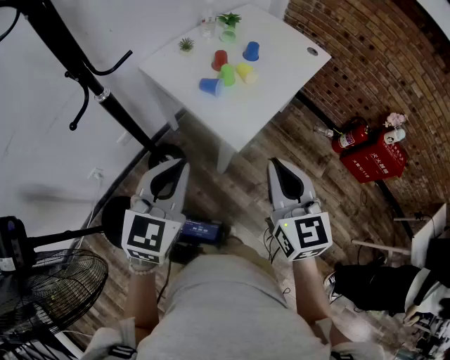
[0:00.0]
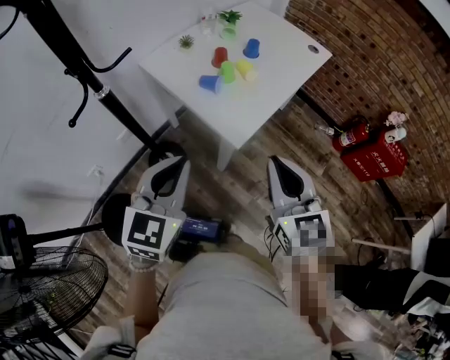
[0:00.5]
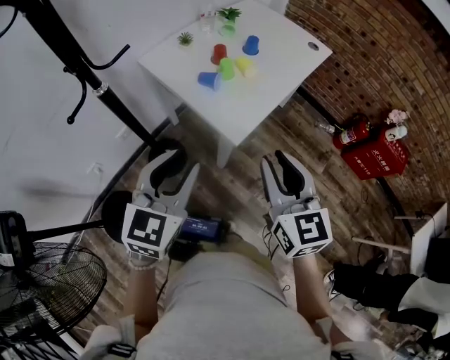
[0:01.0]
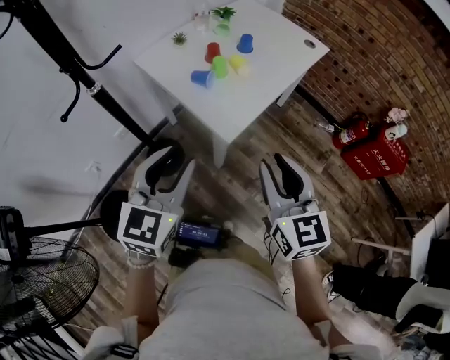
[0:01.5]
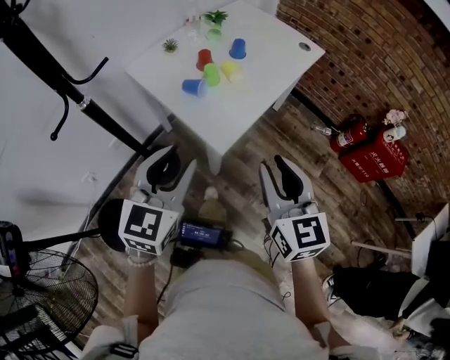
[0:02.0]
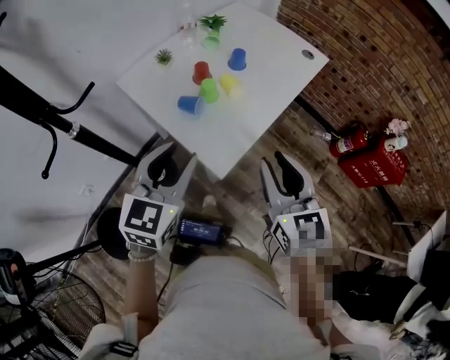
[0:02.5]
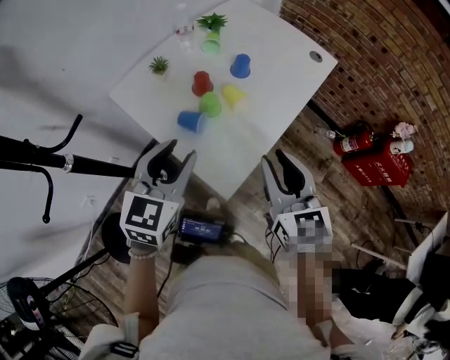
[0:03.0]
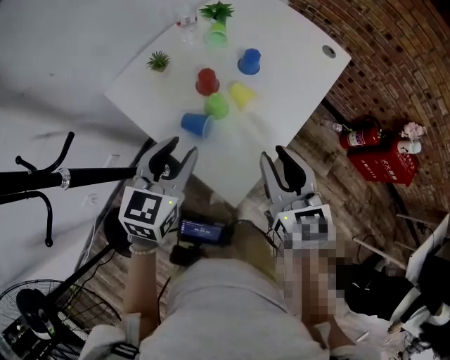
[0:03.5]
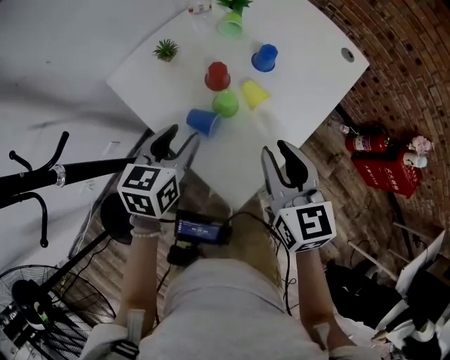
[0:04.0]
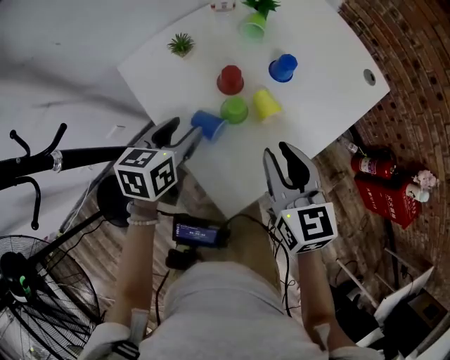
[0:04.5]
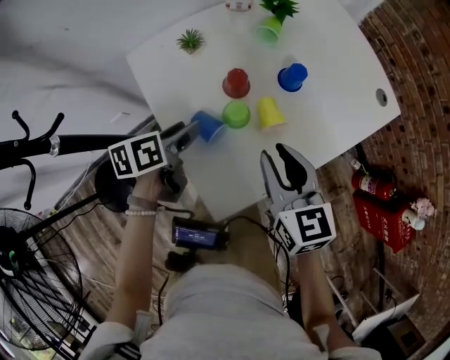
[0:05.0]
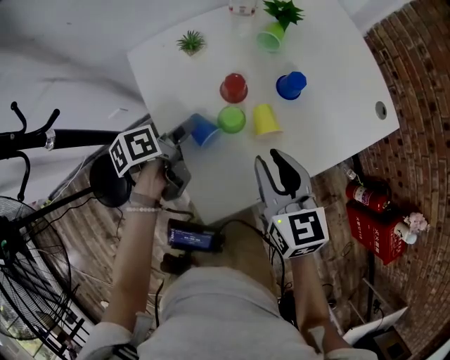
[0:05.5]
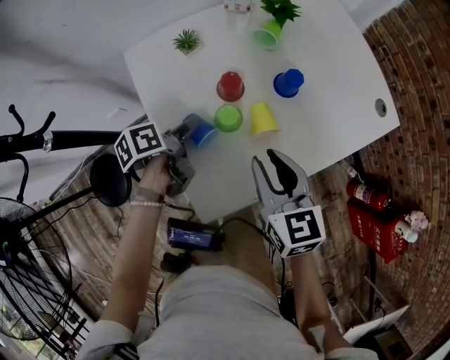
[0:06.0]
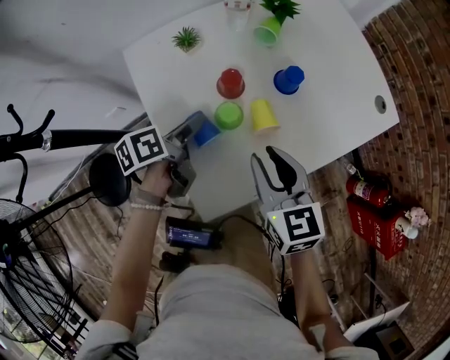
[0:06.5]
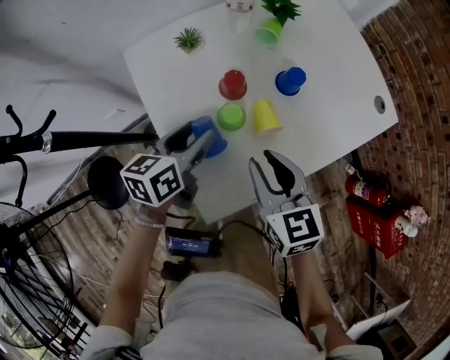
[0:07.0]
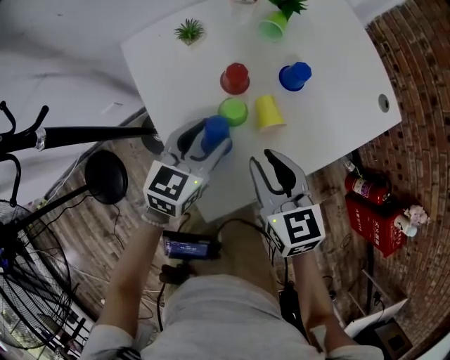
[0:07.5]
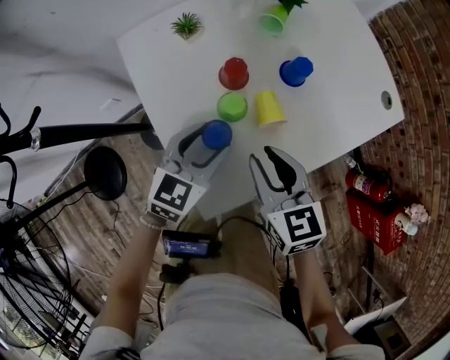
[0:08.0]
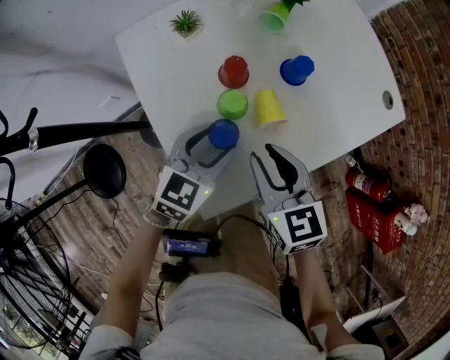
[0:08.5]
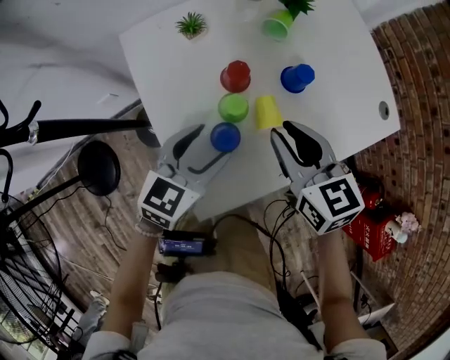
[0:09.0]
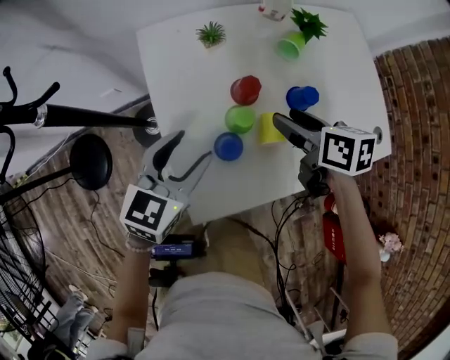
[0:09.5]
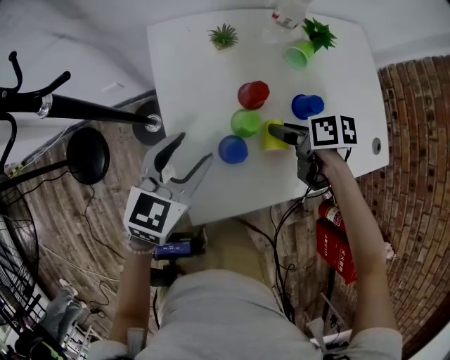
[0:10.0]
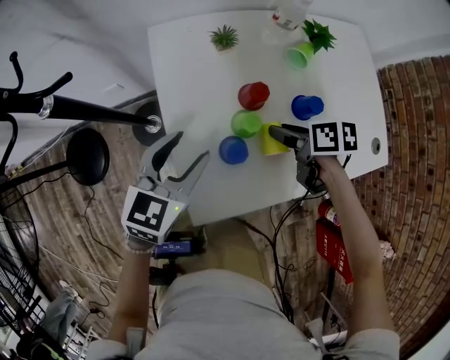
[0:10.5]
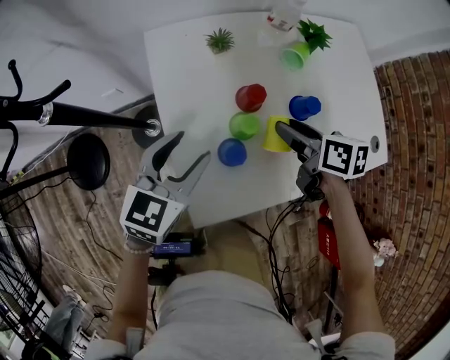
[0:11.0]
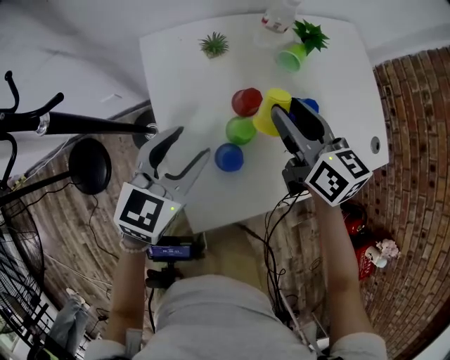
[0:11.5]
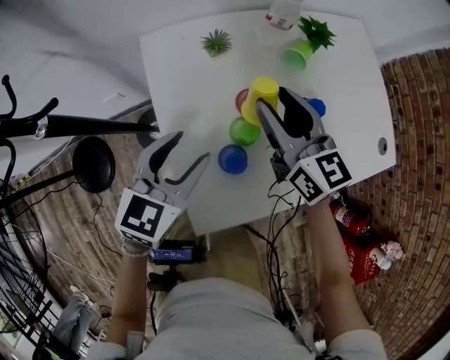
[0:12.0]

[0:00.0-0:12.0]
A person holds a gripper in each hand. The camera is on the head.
0:00.0 to 0:02.0: The two grippers go roughly 5 cm to the right. The right gripper opens its fingers. The left gripper opens.
0:02.0 to 0:04.0: The right gripper shifts approximately 25 cm forward. The left gripper shifts about 30 cm forward and downward, and changes its angle by roughly 30 degrees.
0:04.0 to 0:06.0: The right gripper is displaced forward and downward by roughly 10 cm, and turns by roughly 20 degrees, while the left gripper shifts approximately 10 cm downward, and rotates around the line of its fingers by approximately 70 degrees, counterclockwise from behind.
0:06.0 to 0:08.0: The left gripper heads to the right, covering about 10 cm, and rolls clockwise, seen from behind, by some 70 degrees.
0:08.0 to 0:10.0: The left gripper changes place by some 10 cm, while the right gripper shifts by roughly 15 cm, turns by some 50 degrees, and opens its fingers.
0:10.0 to 0:12.0: The right gripper travels upward and forward by about 15 cm, and tips its fingers upward by roughly 40 degrees.

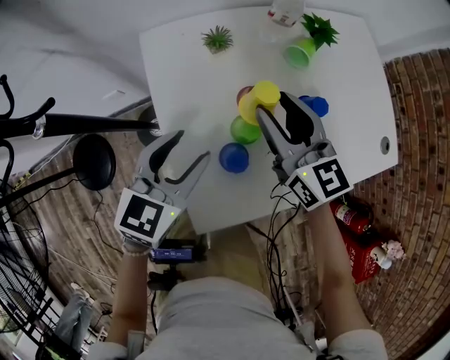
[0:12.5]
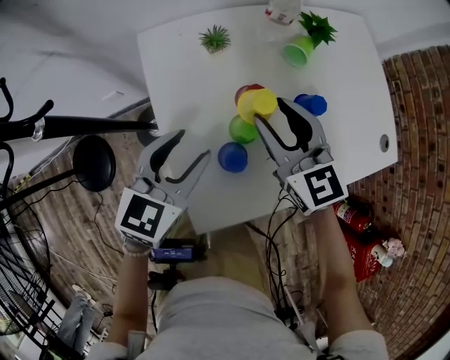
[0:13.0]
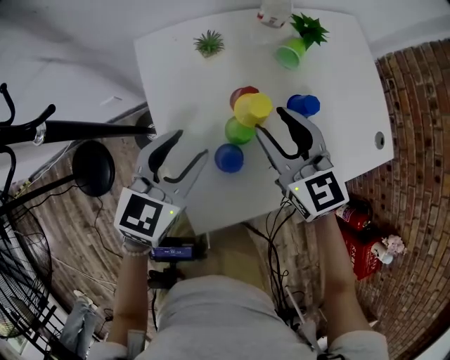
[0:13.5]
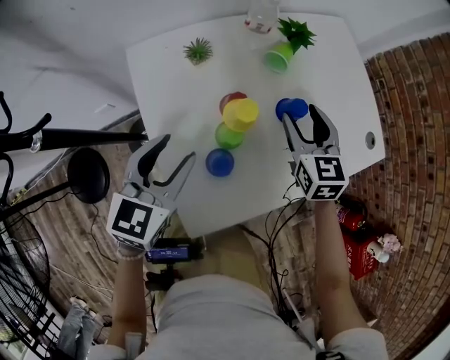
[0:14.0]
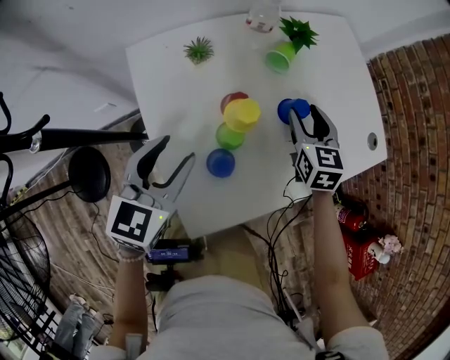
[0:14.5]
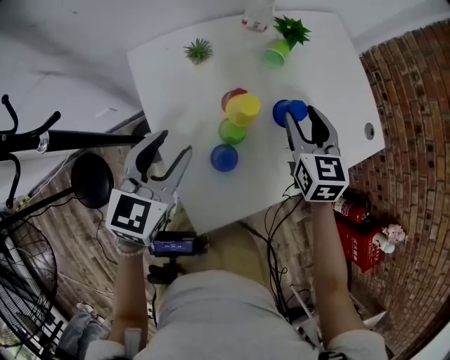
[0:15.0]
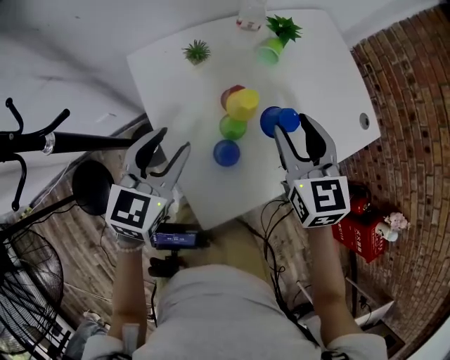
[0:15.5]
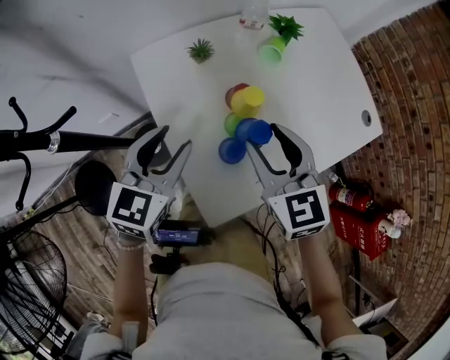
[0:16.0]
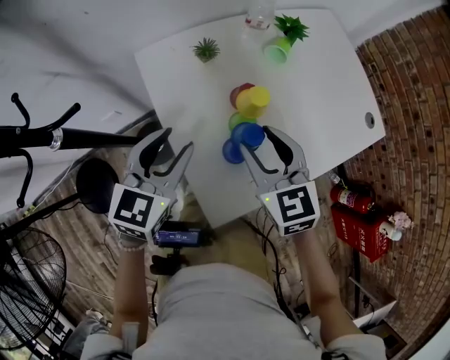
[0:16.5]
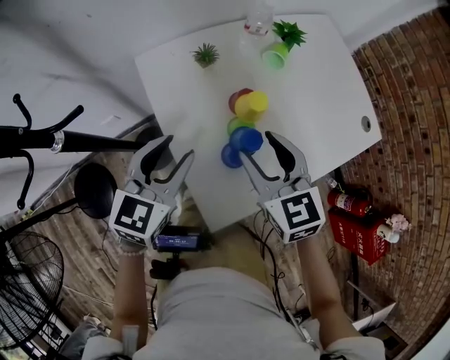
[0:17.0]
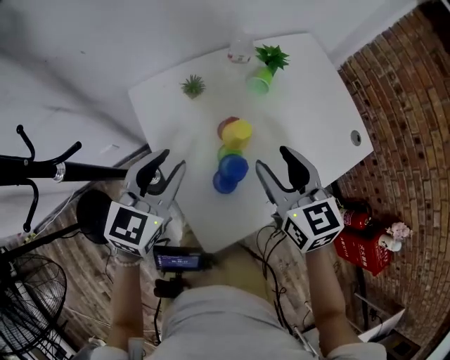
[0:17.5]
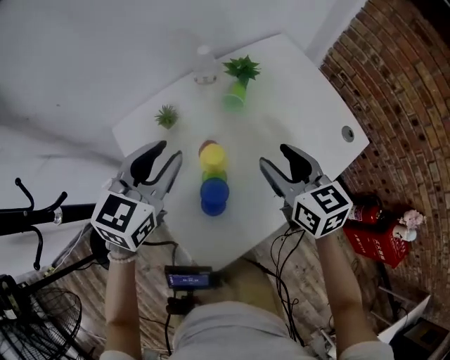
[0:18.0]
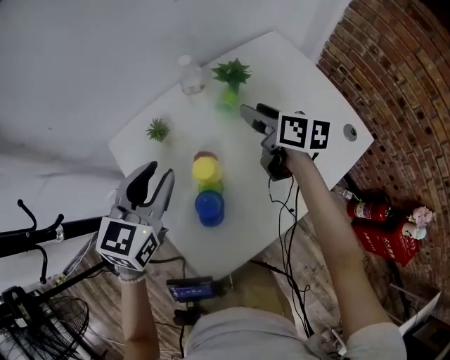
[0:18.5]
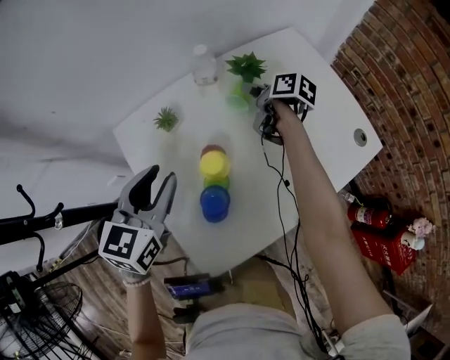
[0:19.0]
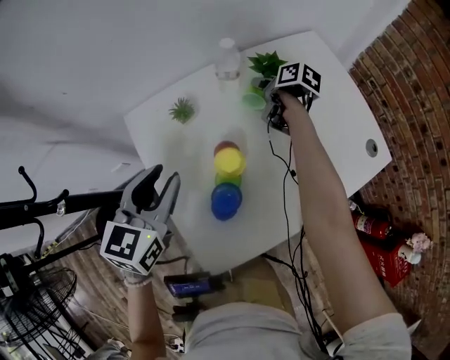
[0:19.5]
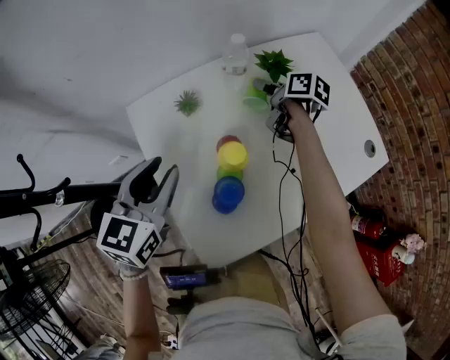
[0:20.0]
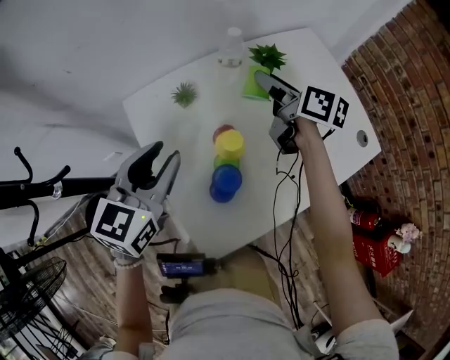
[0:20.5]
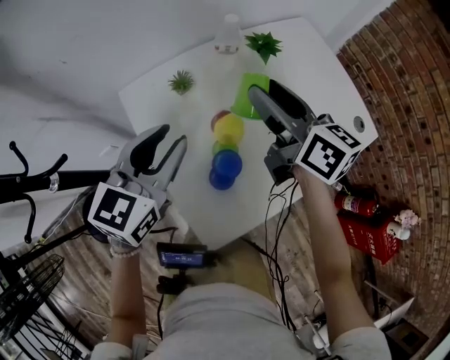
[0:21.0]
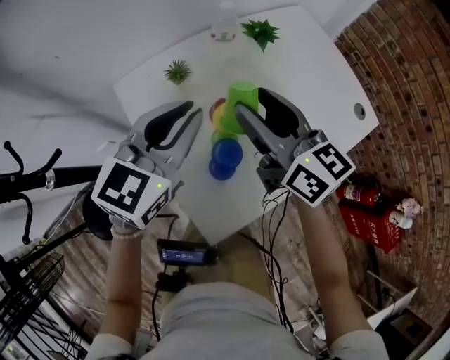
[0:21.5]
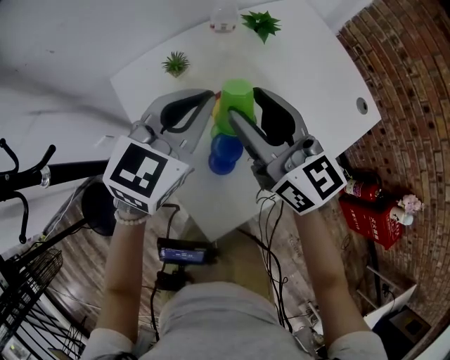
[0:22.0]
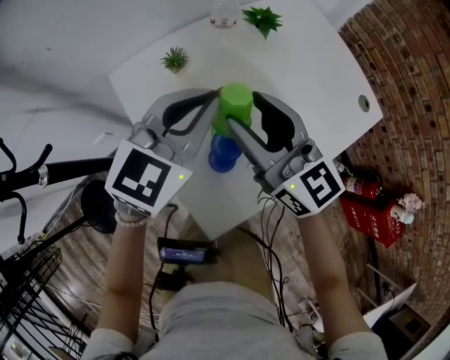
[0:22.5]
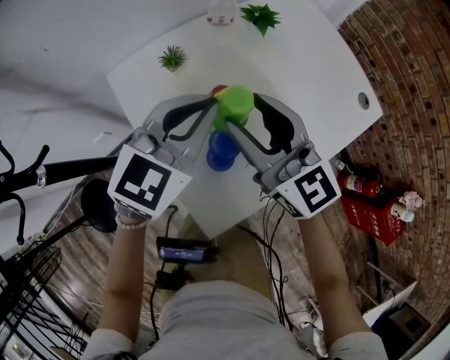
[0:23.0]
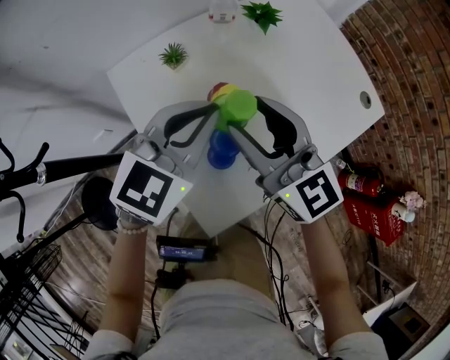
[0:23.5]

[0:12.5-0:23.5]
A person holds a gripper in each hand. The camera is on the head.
0:12.5 to 0:14.5: The right gripper is displaced to the right and downward by approximately 15 cm, and swivels about 30 degrees.
0:14.5 to 0:16.0: The right gripper is displaced backward, to the left and upward by about 20 cm.
0:16.0 to 0:18.0: The right gripper is displaced to the right and forward by roughly 15 cm. Meanwhile the left gripper heads forward, to the right and upward, covering some 15 cm.
0:18.0 to 0:20.0: The left gripper travels to the left by about 5 cm, while the right gripper is displaced forward and downward by about 25 cm, and rolls clockwise, seen from behind, by roughly 40 degrees.
0:20.0 to 0:21.5: The left gripper goes roughly 5 cm to the right, and rotates approximately 20 degrees, while the right gripper moves backward and upward, some 25 cm, and changes its angle by about 50 degrees.
0:21.5 to 0:23.5: The left gripper shifts by about 5 cm; the right gripper goes about 5 cm backward, and rotates roughly 20 degrees.

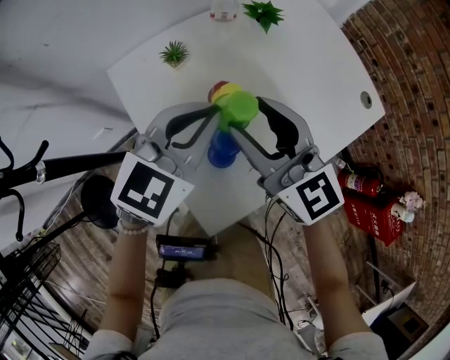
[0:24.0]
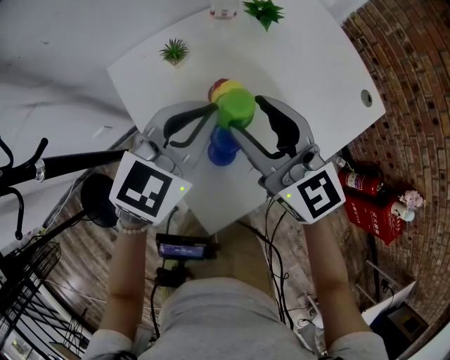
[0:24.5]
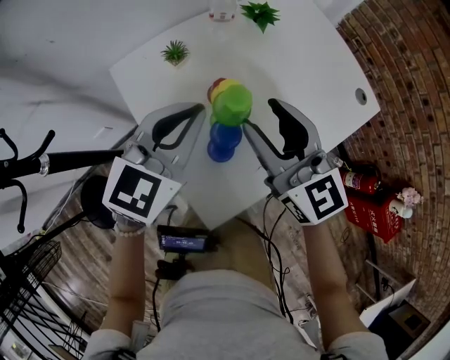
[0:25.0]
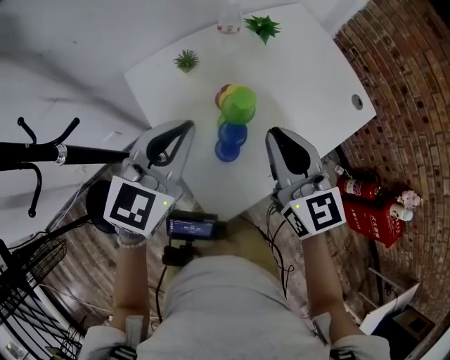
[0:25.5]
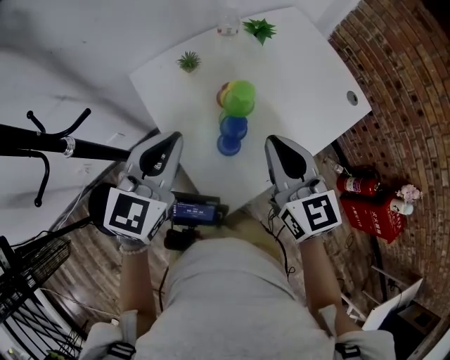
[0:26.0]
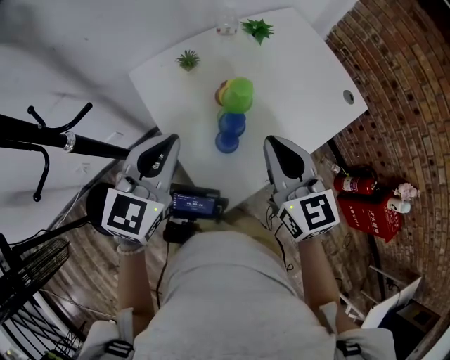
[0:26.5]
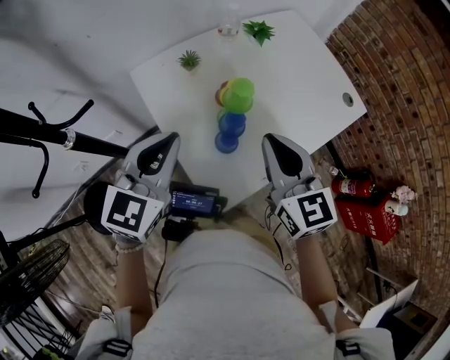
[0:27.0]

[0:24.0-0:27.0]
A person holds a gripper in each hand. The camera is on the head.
0:24.0 to 0:25.5: The right gripper goes roughly 5 cm backward, and closes up. Meanwhile the left gripper heads to the left and backward, covering roughly 10 cm.
0:25.5 to 0:27.0: The left gripper goes approximately 5 cm backward.
